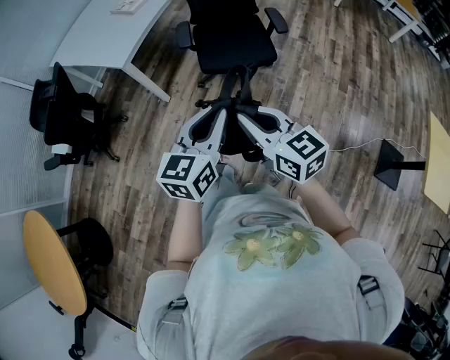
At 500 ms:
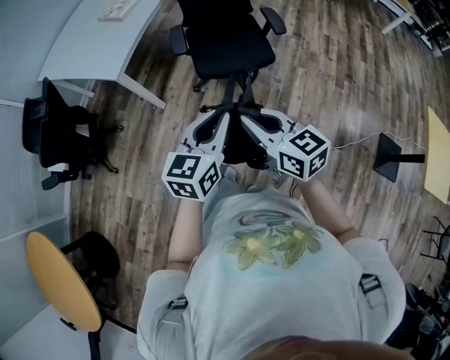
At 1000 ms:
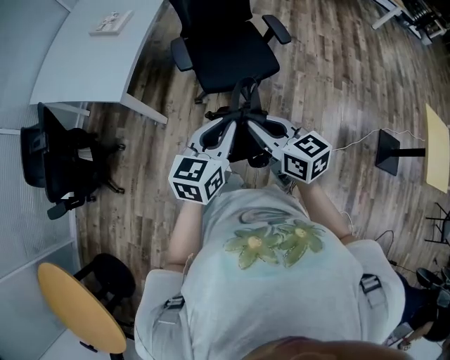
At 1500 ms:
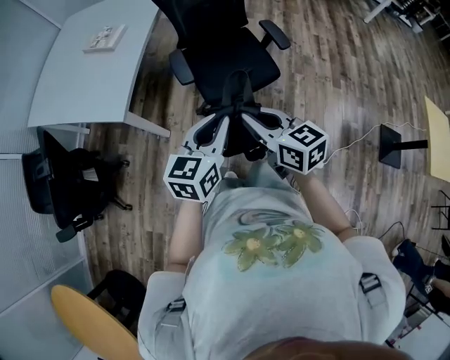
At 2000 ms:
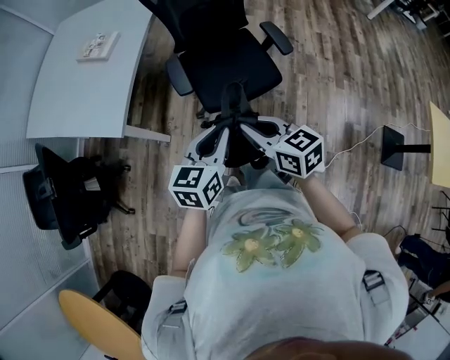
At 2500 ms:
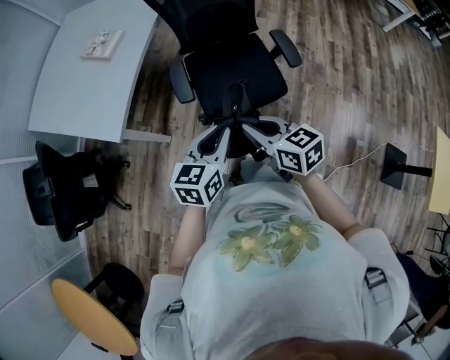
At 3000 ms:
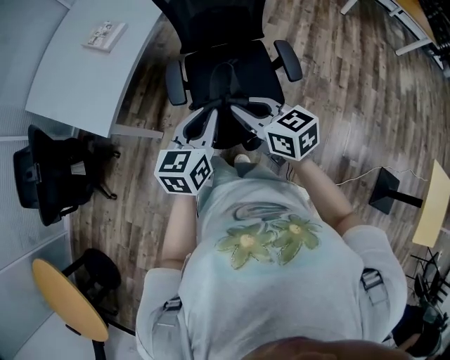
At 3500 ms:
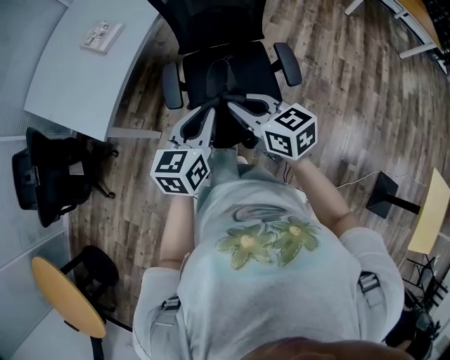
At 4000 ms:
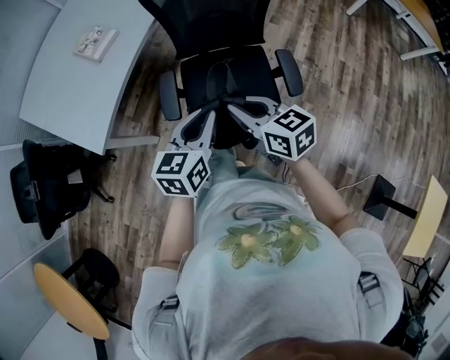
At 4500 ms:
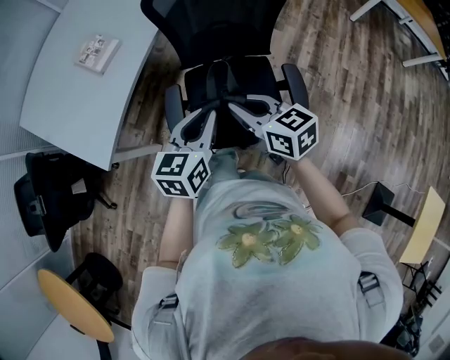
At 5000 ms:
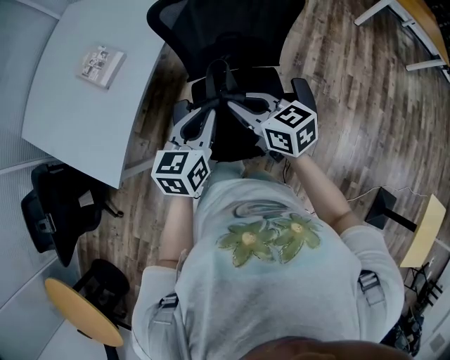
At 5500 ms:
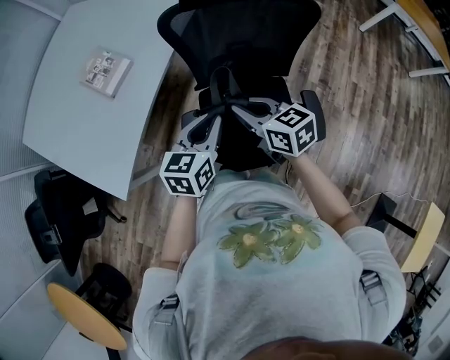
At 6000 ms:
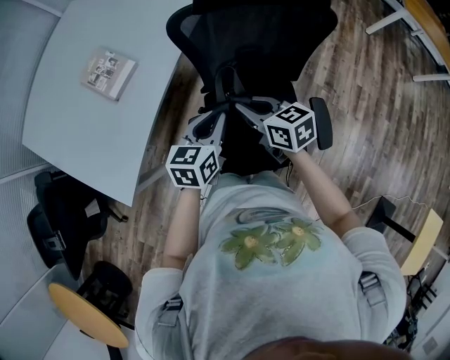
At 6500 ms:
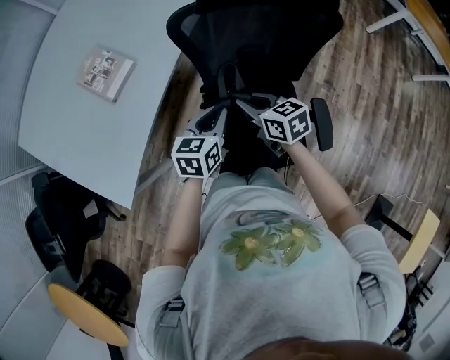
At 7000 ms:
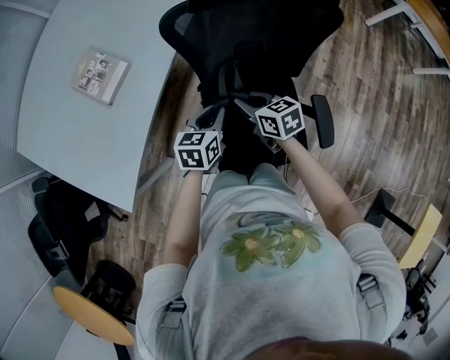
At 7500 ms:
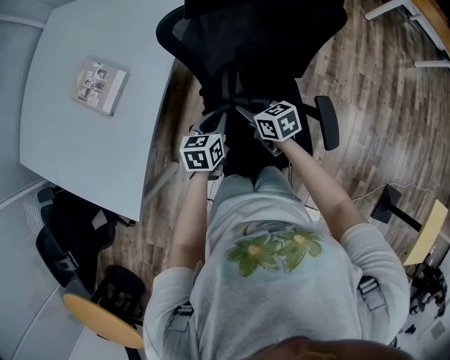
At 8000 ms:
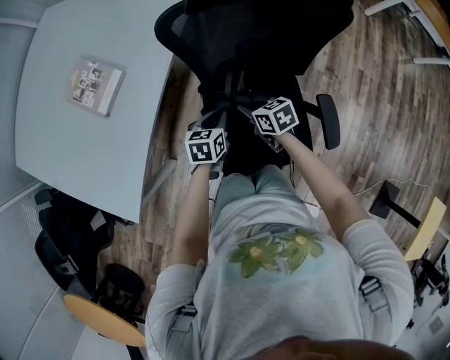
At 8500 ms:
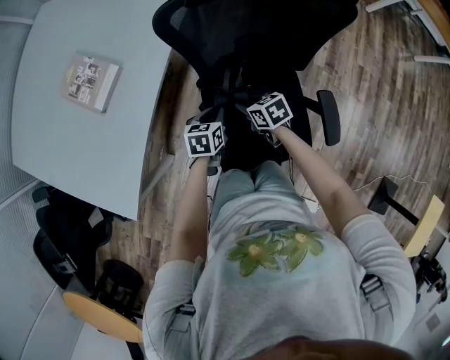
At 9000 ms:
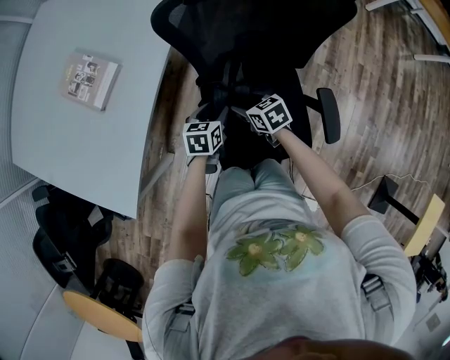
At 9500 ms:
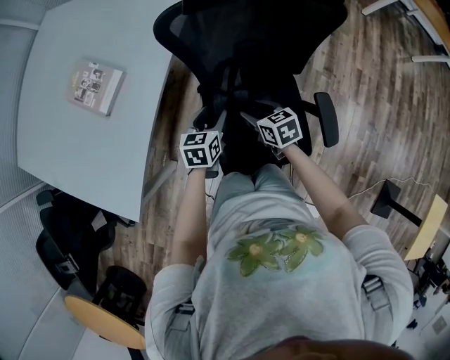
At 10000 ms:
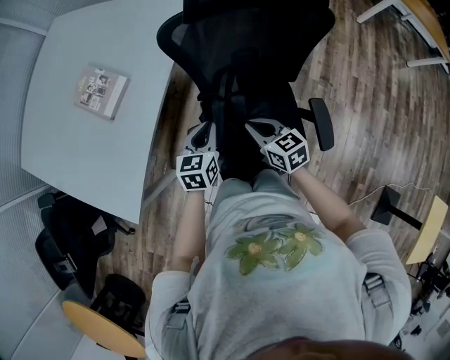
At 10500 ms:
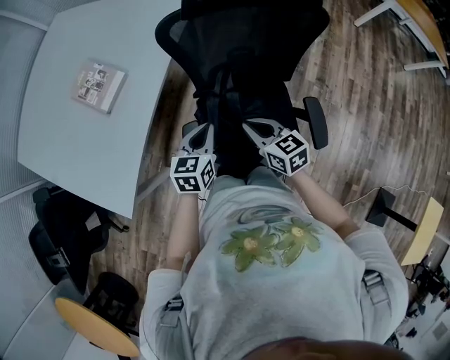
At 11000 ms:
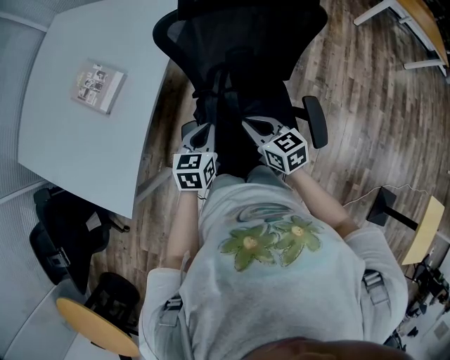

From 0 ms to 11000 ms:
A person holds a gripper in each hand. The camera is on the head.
From 0 ms to 2000 ms: The grippers both shift forward by roughly 30 cm.
From 2000 ms to 3500 ms: The two grippers go approximately 20 cm forward and to the right.
From 3500 ms to 5500 ms: Both grippers move forward, some 30 cm.
From 5500 ms to 7500 ms: The two grippers go some 20 cm downward and forward.
From 7500 ms to 9000 ms: Both grippers move downward, roughly 5 cm. The right gripper opens; the left gripper opens up.
From 9000 ms to 11000 ms: The right gripper moves upward and backward, approximately 15 cm, rotates about 20 degrees, and closes up; the left gripper is displaced upward by roughly 15 cm, and closes its fingers.

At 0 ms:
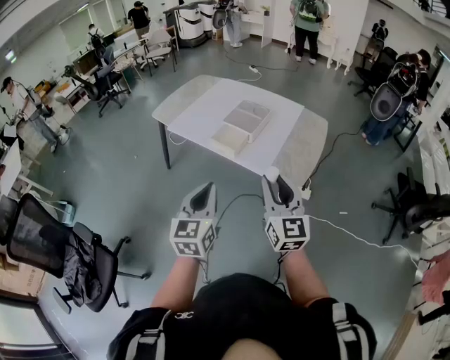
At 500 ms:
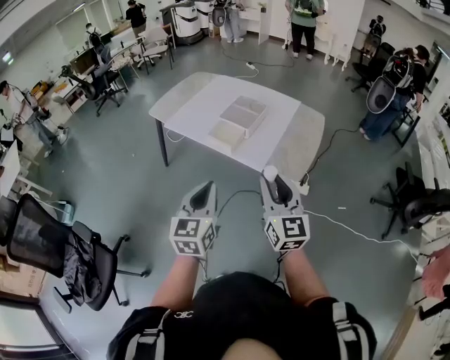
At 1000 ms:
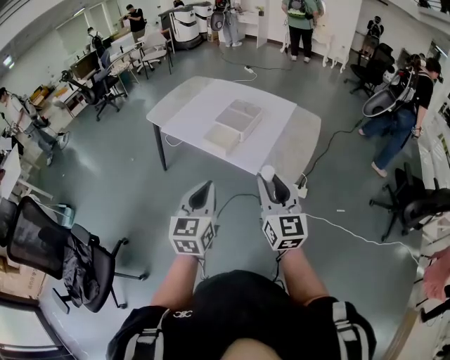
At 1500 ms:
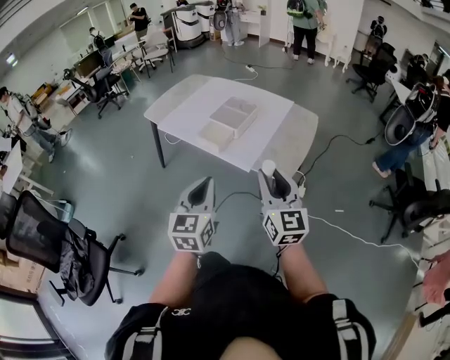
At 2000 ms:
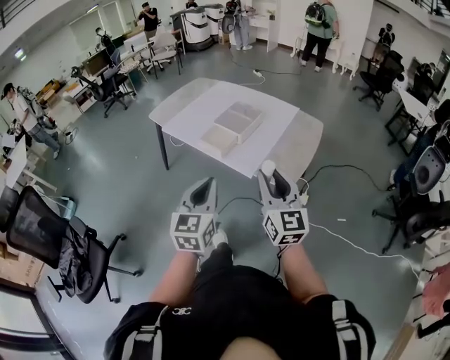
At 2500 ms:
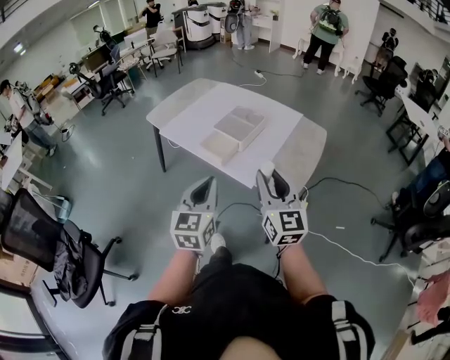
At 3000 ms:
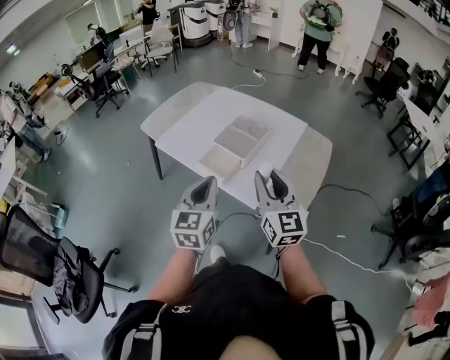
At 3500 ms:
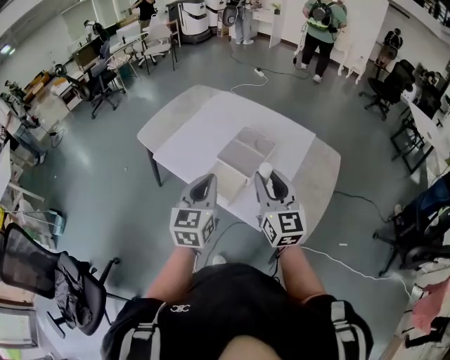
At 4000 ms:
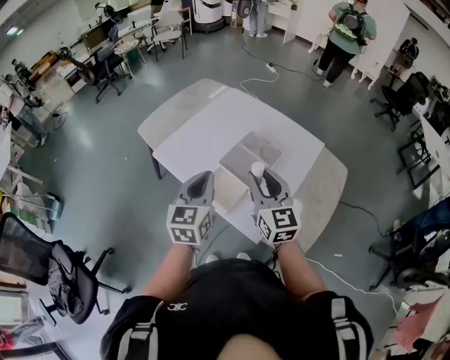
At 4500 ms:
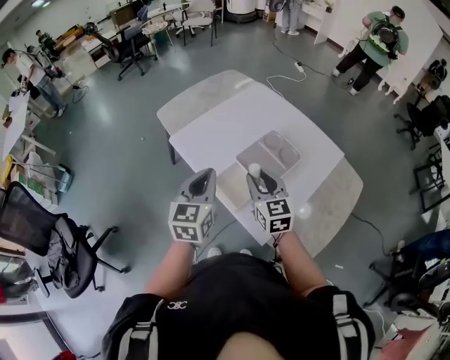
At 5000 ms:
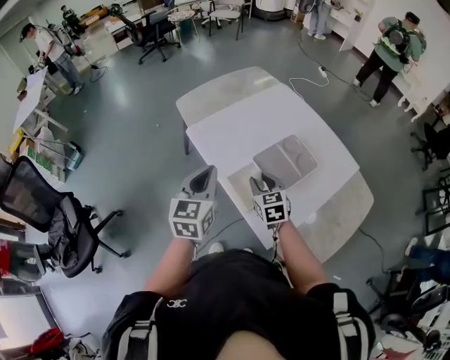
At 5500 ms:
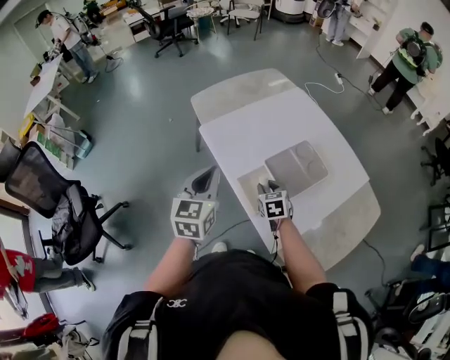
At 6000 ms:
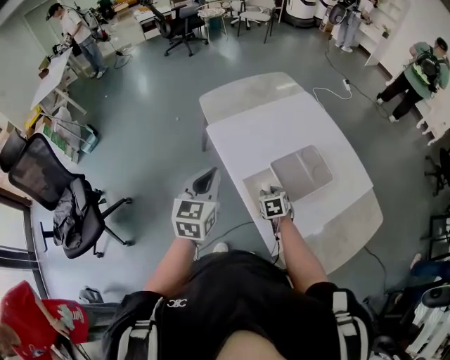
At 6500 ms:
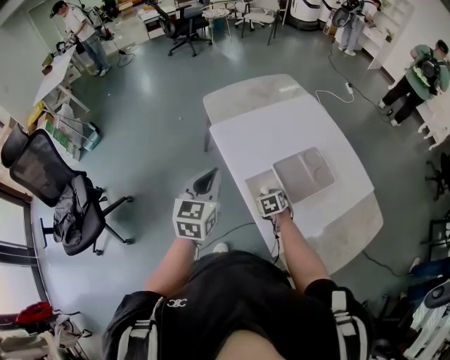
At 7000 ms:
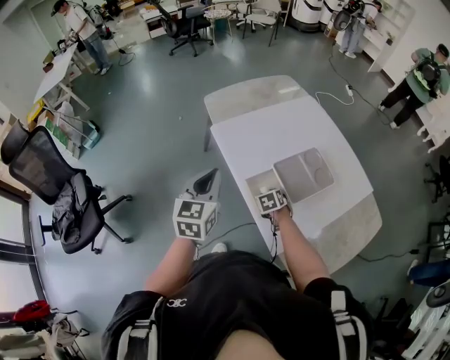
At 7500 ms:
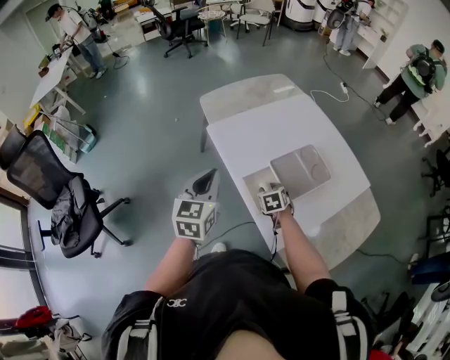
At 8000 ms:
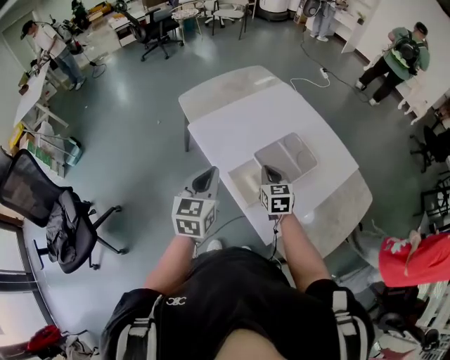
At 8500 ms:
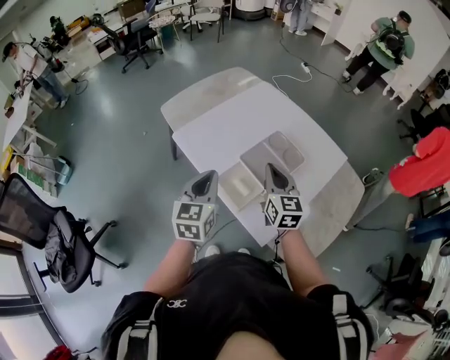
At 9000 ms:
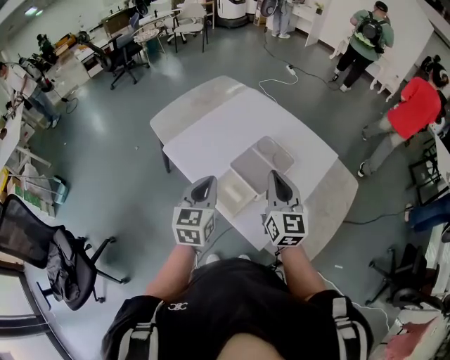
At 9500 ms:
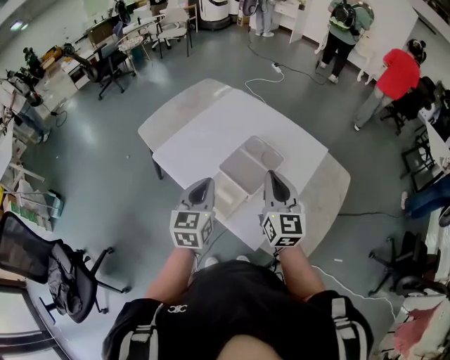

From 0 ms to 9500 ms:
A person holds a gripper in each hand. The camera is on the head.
From 0 ms to 2000 ms: The grippers both shift to the right by about 10 cm.
From 2000 ms to 4000 ms: The two grippers travel together, forward, roughly 40 cm.
From 4000 ms to 5500 ms: The right gripper shifts some 25 cm downward and forward, and points its fingers roughly 40 degrees further downward. The left gripper goes some 10 cm to the left.
From 7500 ms to 9500 ms: The right gripper shifts about 30 cm upward and to the right, points its fingers approximately 60 degrees further upward, and closes. The left gripper is displaced to the right by approximately 15 cm.

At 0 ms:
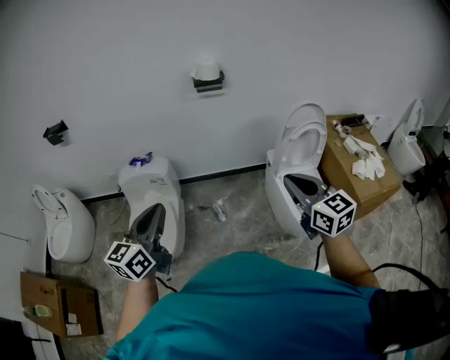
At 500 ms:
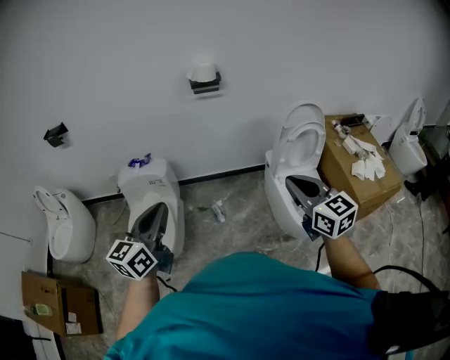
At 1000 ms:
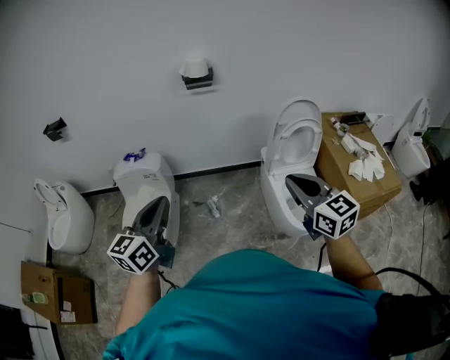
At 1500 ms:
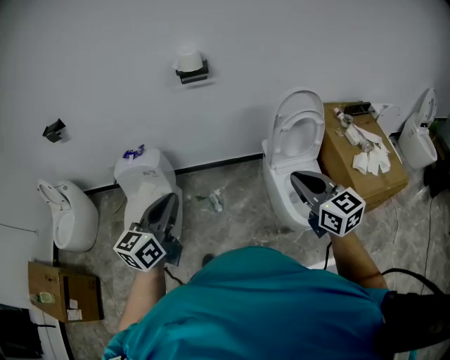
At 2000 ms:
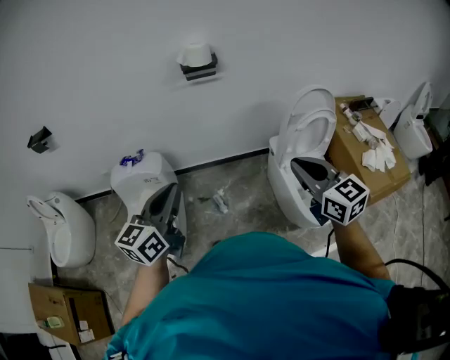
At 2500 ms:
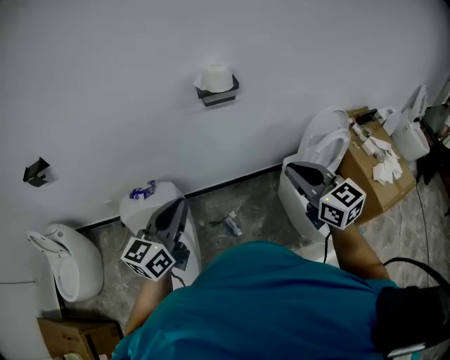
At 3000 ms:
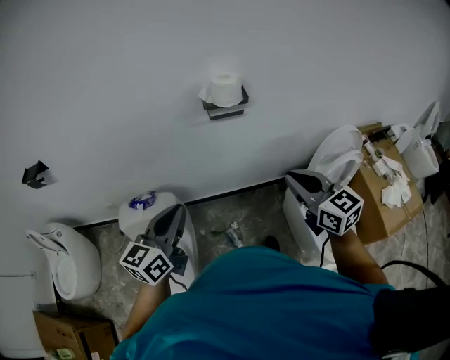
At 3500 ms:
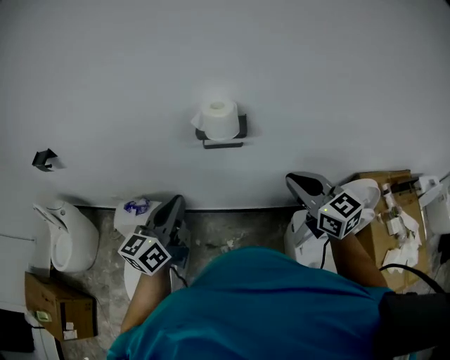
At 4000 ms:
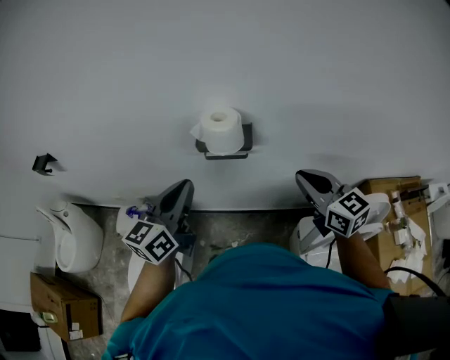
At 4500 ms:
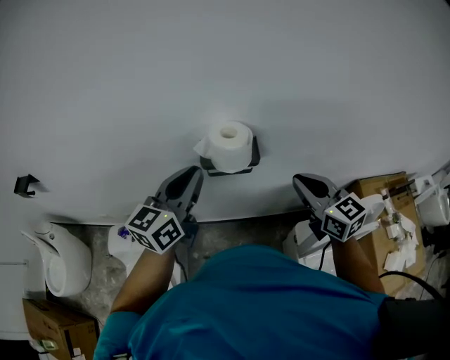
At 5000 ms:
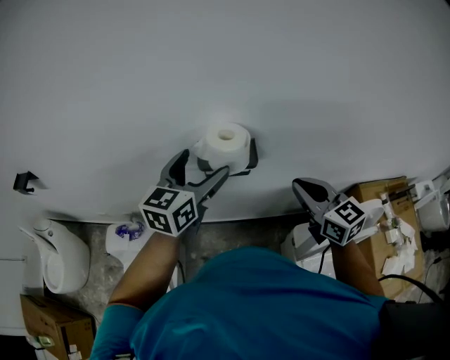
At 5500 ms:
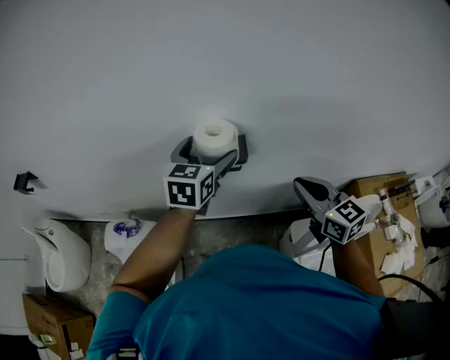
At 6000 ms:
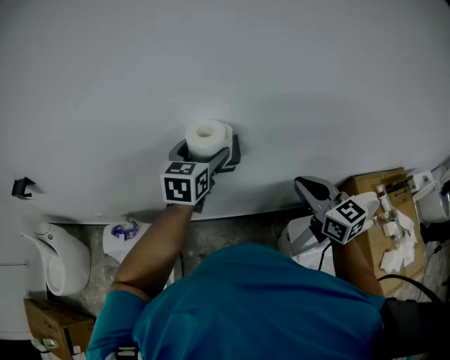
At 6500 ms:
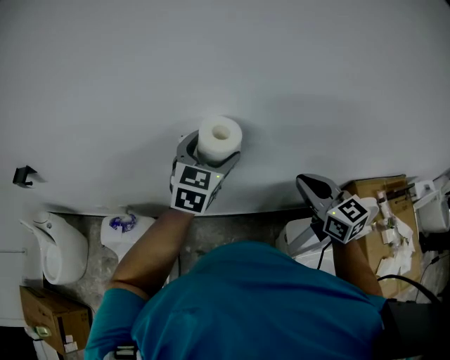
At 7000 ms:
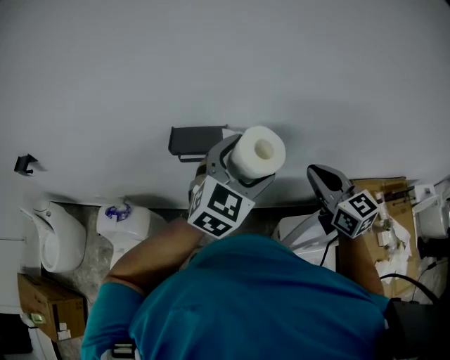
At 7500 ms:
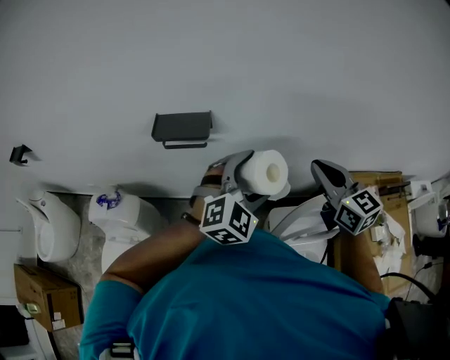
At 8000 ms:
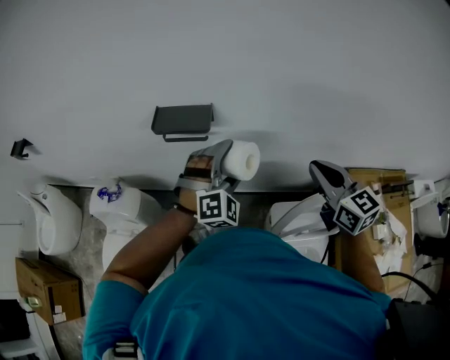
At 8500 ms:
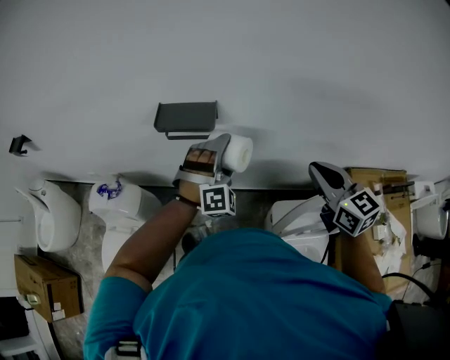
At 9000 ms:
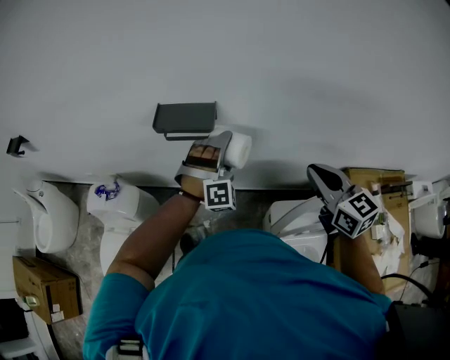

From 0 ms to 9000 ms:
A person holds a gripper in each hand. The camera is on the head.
From 0 ms to 2000 ms: The right gripper travels forward by some 10 cm, while the left gripper is displaced forward and to the right by about 15 cm.
From 2000 ms to 4500 ms: Both grippers are carried forward, roughly 50 cm.
From 4500 ms to 7000 ms: The left gripper travels to the right by about 25 cm, changes its angle by some 40 degrees, and opens up; the right gripper is displaced to the right by roughly 15 cm.
From 7000 ms to 9000 ms: The left gripper heads downward, covering about 20 cm, and rotates around the line of its fingers by some 50 degrees, clockwise from behind; the right gripper moves approximately 5 cm.
